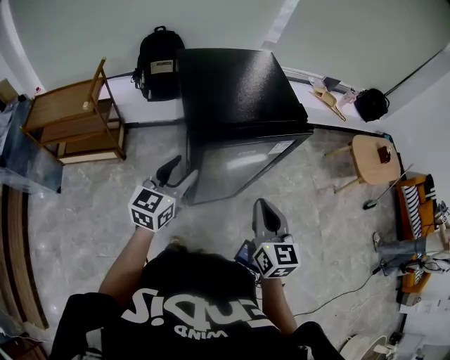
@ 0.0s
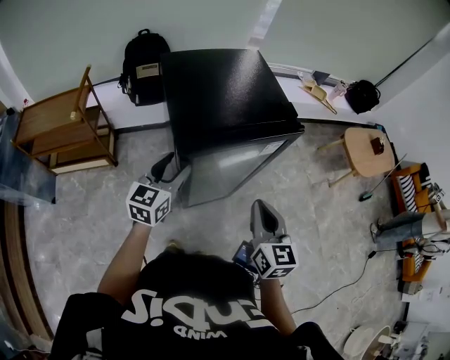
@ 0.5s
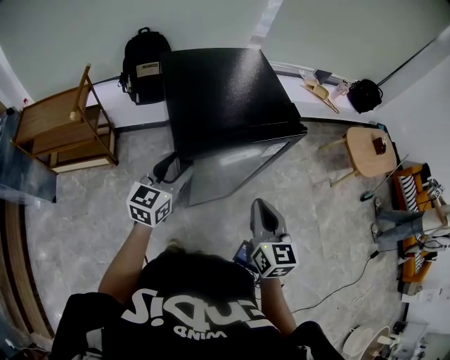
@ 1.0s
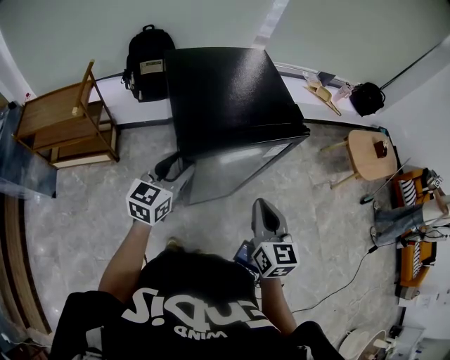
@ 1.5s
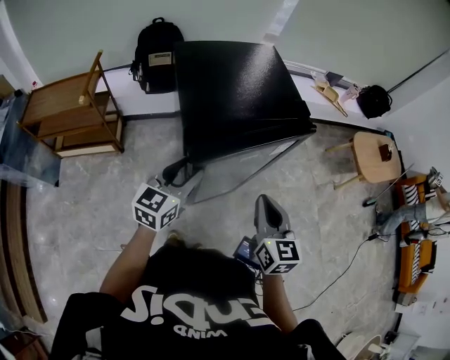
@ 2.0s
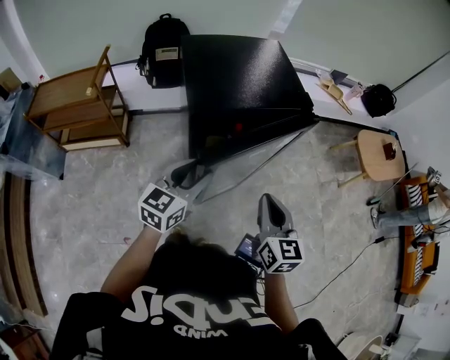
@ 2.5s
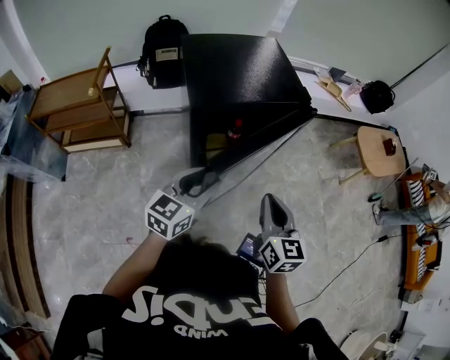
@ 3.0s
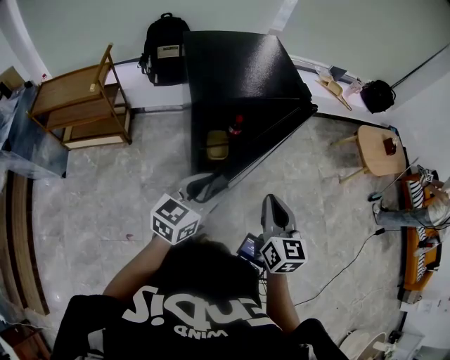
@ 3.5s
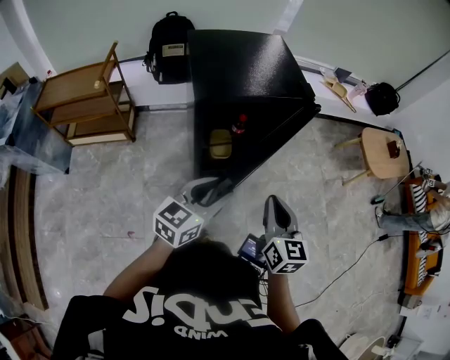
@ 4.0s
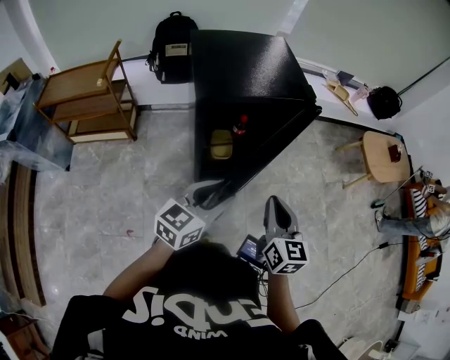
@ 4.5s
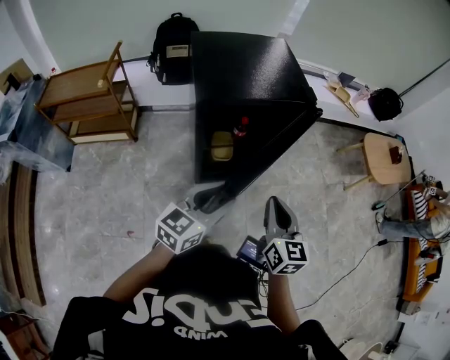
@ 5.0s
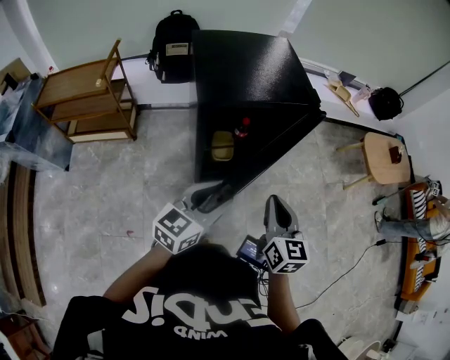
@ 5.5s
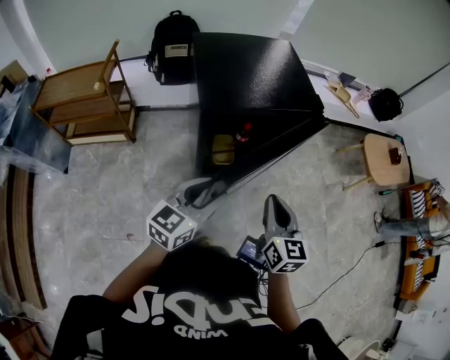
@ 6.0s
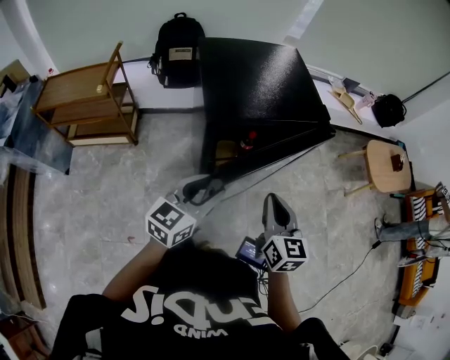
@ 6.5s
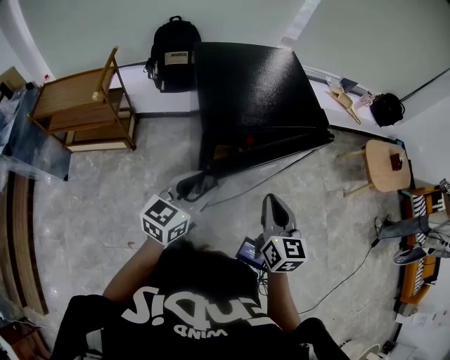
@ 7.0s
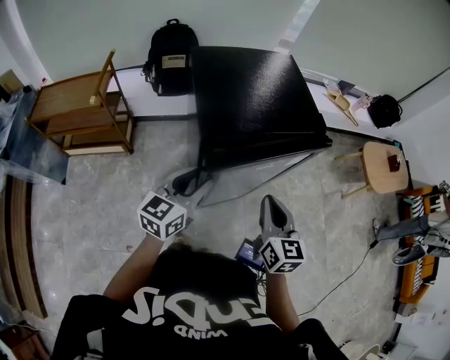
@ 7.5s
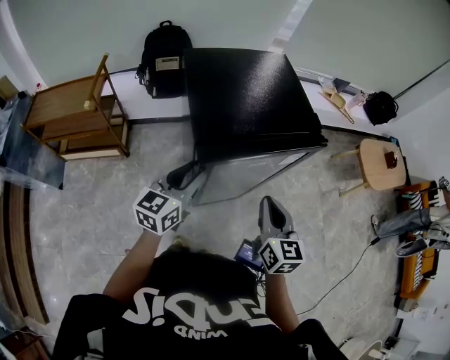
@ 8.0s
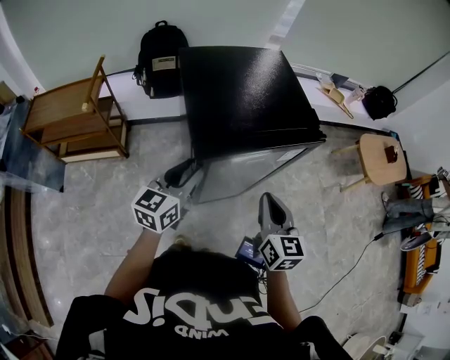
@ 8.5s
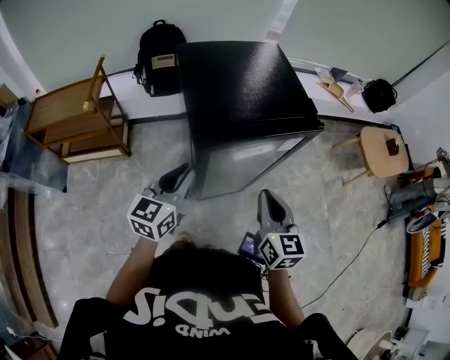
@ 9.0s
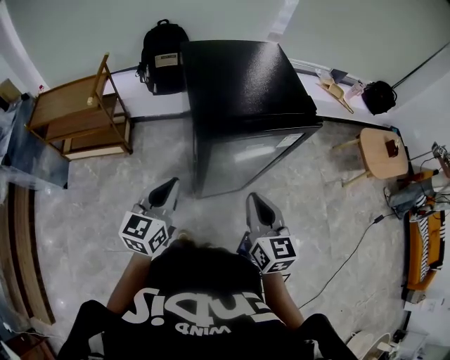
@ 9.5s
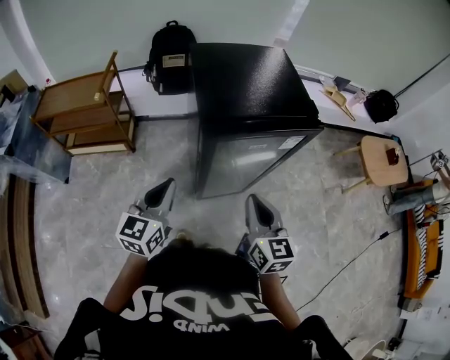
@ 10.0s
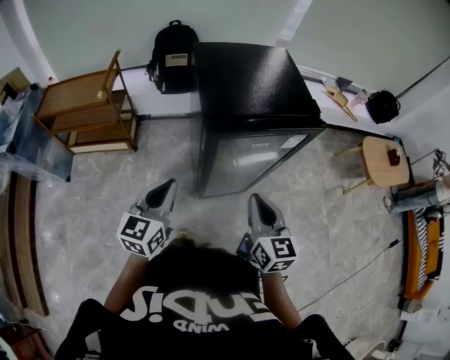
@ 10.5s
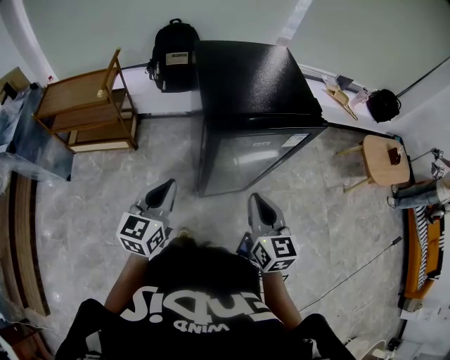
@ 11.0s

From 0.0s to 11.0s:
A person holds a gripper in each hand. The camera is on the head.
From 0.0s to 2.0s: The grippers move only a little.
From 2.0s to 3.5s: The right gripper goes about 10 cm backward. Meanwhile the left gripper is displaced backward and to the right by roughly 15 cm.
From 3.5s to 5.5s: There are only small adjustments of the grippers.
From 5.5s to 7.5s: The right gripper goes about 10 cm forward and to the left, while the left gripper heads forward and to the left, covering some 15 cm.
From 7.5s to 9.0s: The left gripper closes up.
From 9.0s to 11.0s: The right gripper goes about 5 cm backward, while the left gripper heads backward and to the left, covering approximately 10 cm.

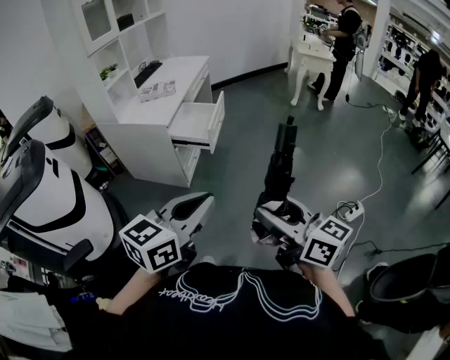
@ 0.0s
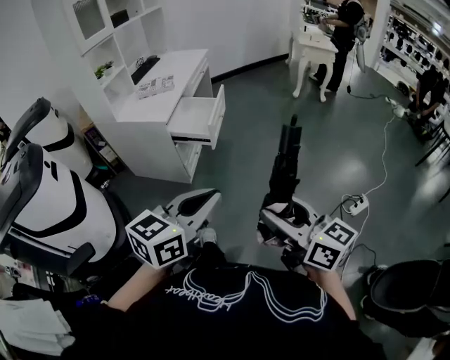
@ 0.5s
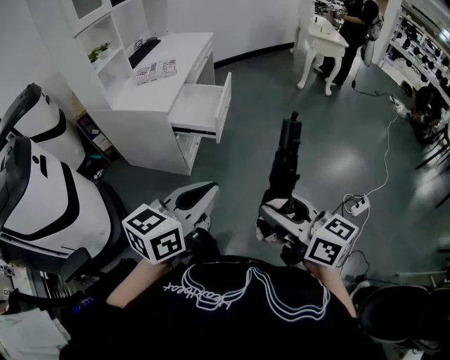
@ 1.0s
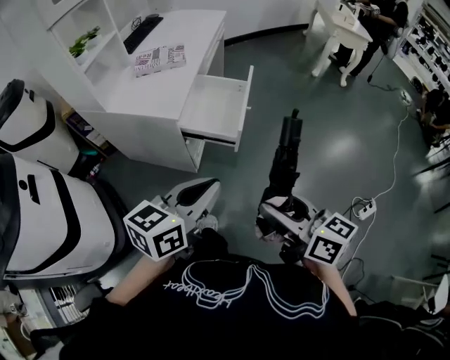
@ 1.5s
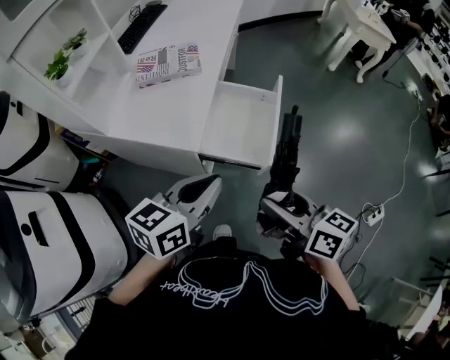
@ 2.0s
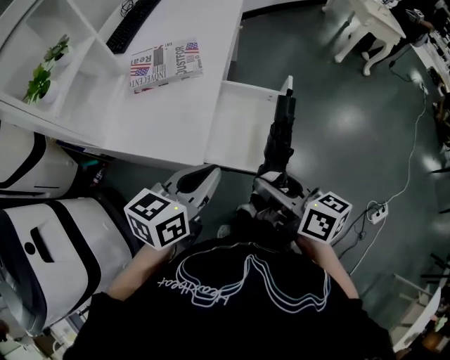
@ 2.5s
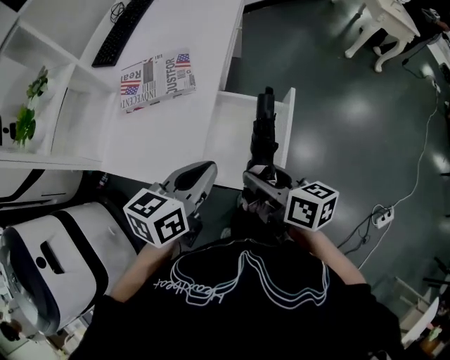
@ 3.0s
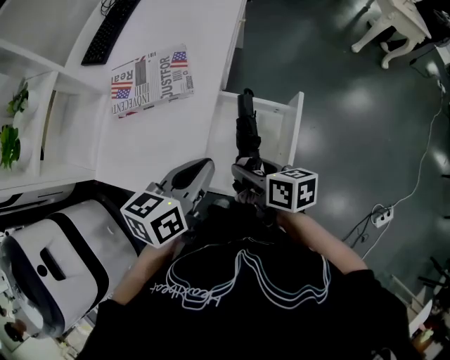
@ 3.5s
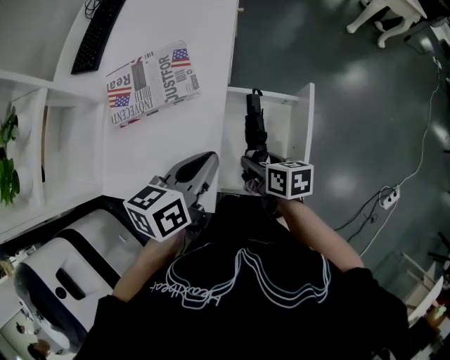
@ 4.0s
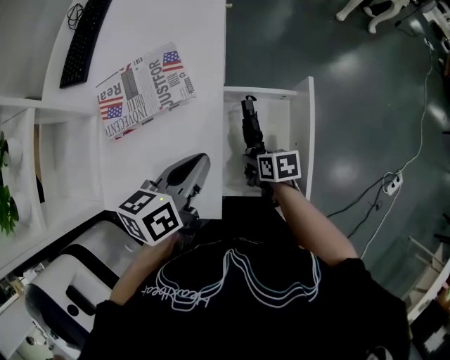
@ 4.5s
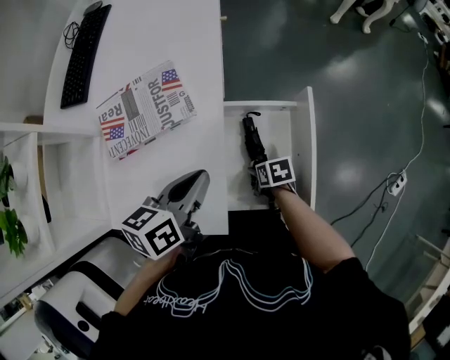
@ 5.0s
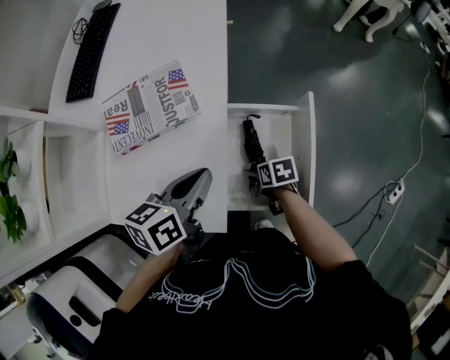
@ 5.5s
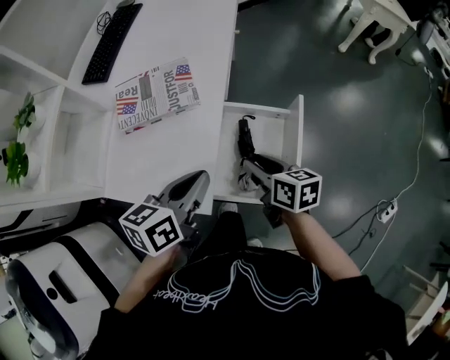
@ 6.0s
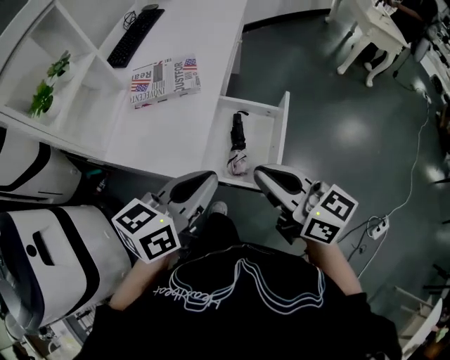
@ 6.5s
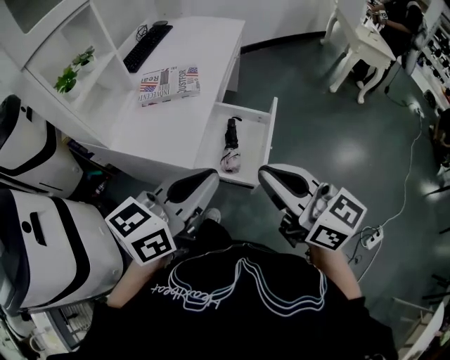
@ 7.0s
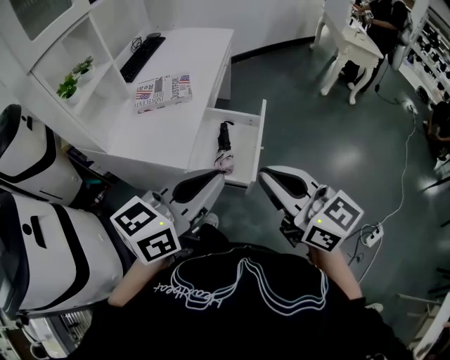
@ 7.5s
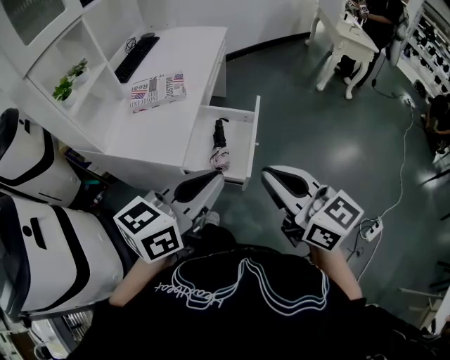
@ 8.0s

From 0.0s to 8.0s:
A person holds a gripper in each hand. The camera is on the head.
From 0.0s to 2.0s: The pair of grippers is taken forward and to the left, some 50 cm. The right gripper rotates roughly 20 degrees.
From 2.0s to 4.0s: The left gripper shifts roughly 25 cm forward; the right gripper moves forward and downward, approximately 35 cm, and changes its angle by roughly 30 degrees.
From 4.0s to 6.0s: The right gripper shifts approximately 10 cm upward, and opens, then closes again.
From 6.0s to 8.0s: The right gripper goes approximately 40 cm backward and upward, turns by about 40 degrees, and closes its fingers; the left gripper is displaced backward, upward and to the right by roughly 30 cm, and changes its angle by roughly 30 degrees.

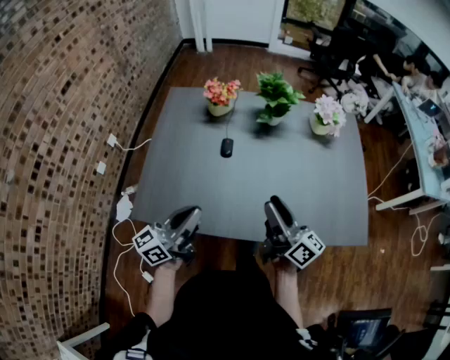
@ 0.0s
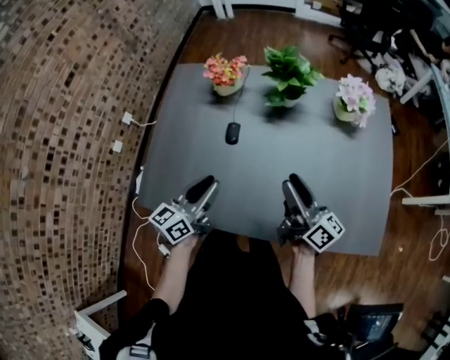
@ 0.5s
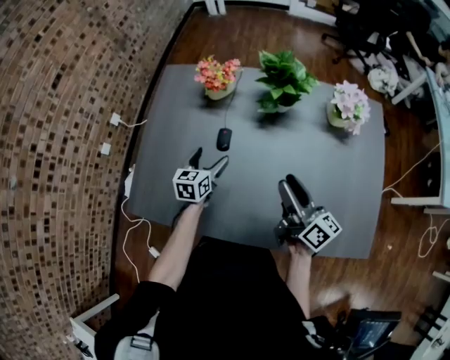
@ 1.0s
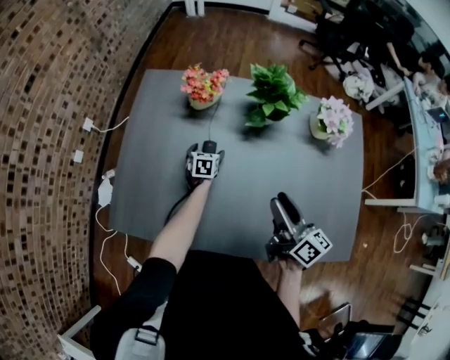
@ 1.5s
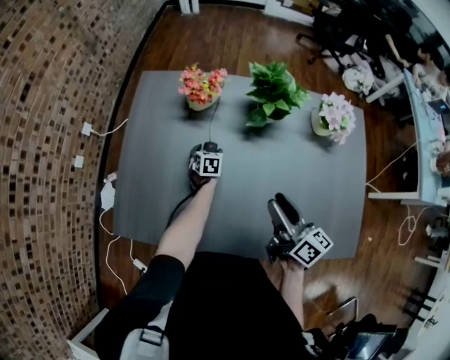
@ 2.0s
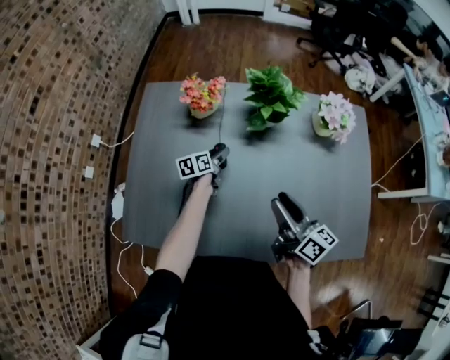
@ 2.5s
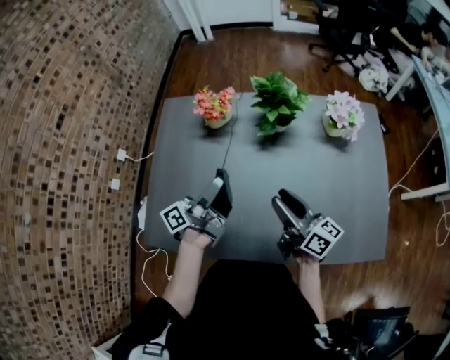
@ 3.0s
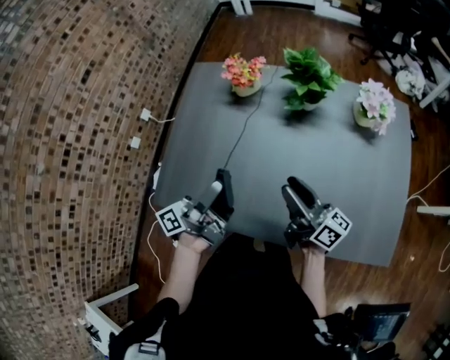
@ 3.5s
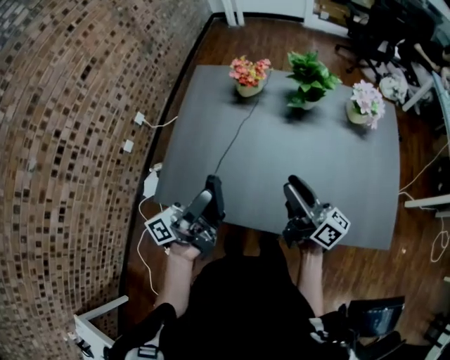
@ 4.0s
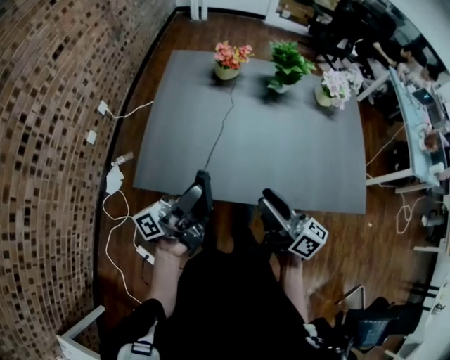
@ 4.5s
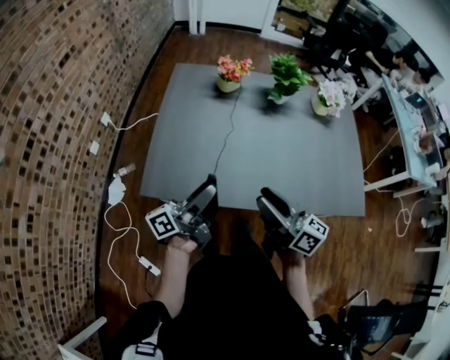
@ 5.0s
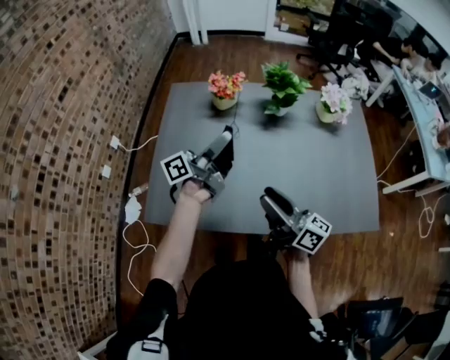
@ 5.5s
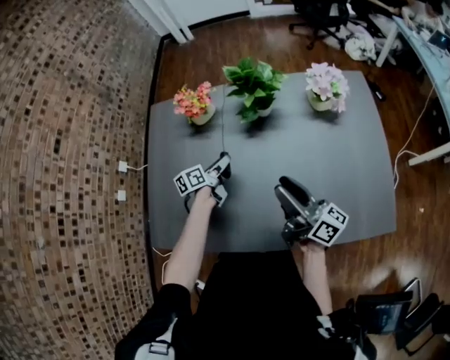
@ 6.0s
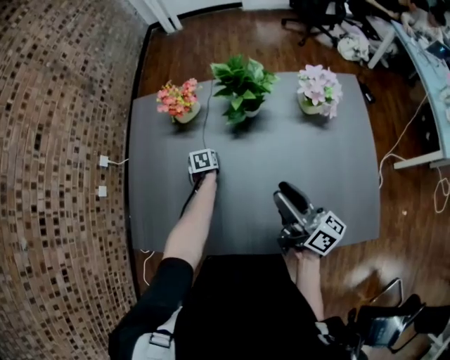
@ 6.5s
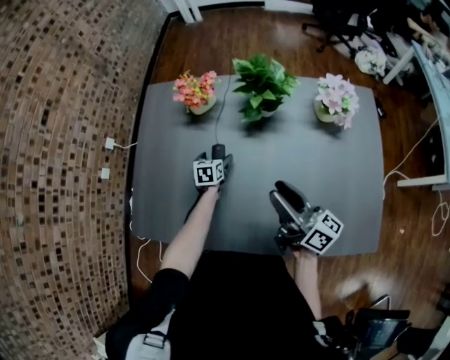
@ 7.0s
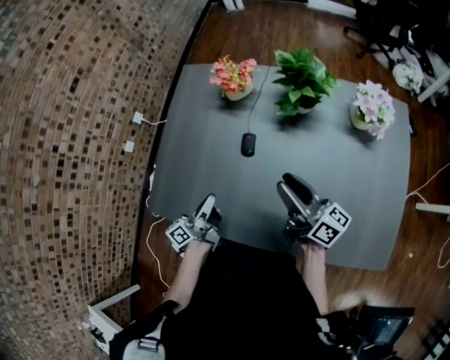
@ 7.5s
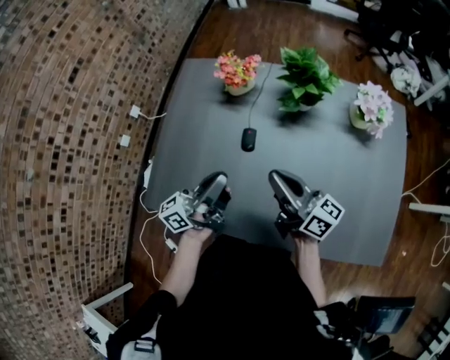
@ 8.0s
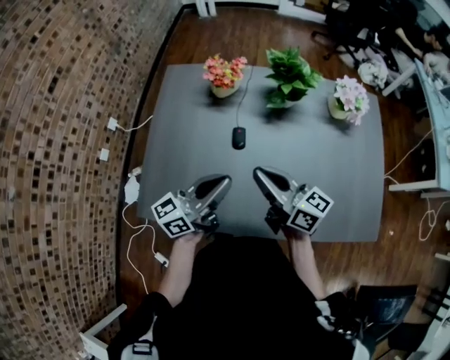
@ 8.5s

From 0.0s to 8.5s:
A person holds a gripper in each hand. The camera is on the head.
From 0.0s to 2.0s: The left gripper heads forward and downward, covering some 50 cm, points its fingers some 60 degrees further downward, and opens; the right gripper moves forward and to the right, approximately 20 cm.
From 2.0s to 4.0s: The right gripper shifts approximately 10 cm backward and to the left, and swivels approximately 20 degrees, while the left gripper goes some 50 cm upward and backward, and angles its fingers upward, by about 80 degrees.
From 4.0s to 6.5s: The right gripper goes roughly 15 cm to the right and forward; the left gripper heads downward and forward, covering about 50 cm, and tips its fingers downward by some 90 degrees.
From 6.5s to 8.5s: The left gripper heads upward and backward, covering approximately 40 cm, tips its fingers upward by about 80 degrees, and closes up. The right gripper goes some 20 cm to the left, rotates some 20 degrees, and closes up.
